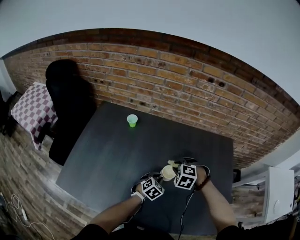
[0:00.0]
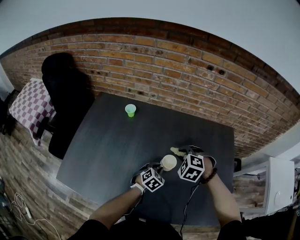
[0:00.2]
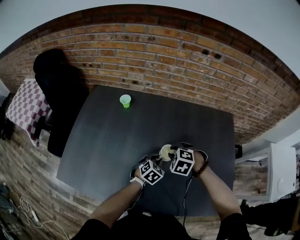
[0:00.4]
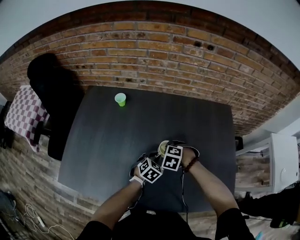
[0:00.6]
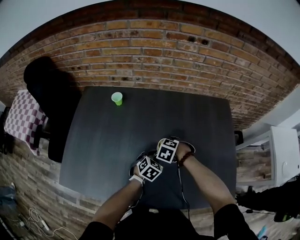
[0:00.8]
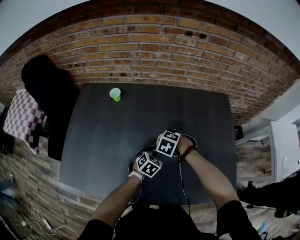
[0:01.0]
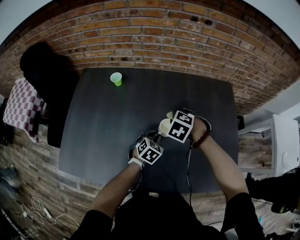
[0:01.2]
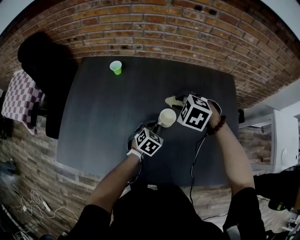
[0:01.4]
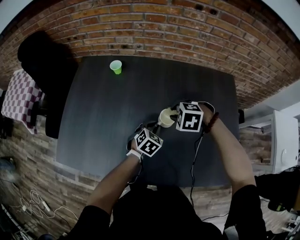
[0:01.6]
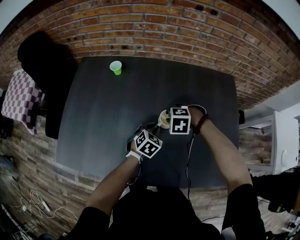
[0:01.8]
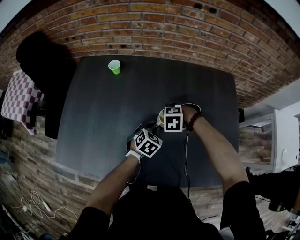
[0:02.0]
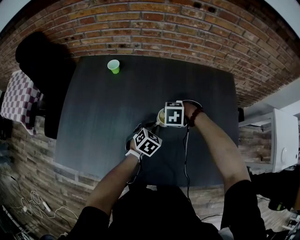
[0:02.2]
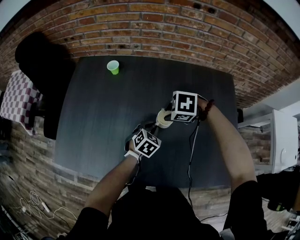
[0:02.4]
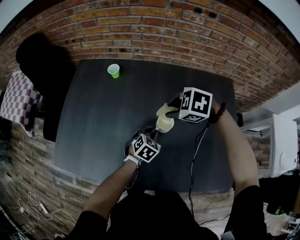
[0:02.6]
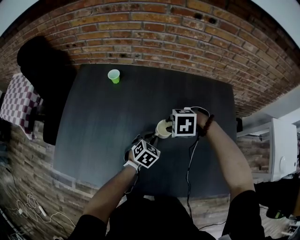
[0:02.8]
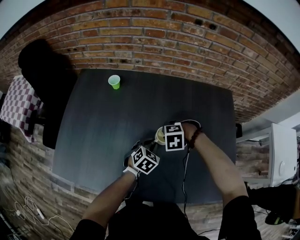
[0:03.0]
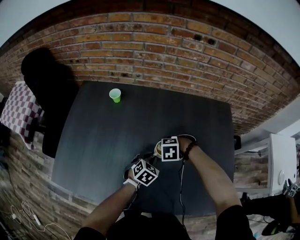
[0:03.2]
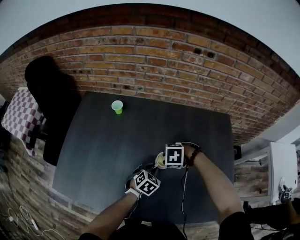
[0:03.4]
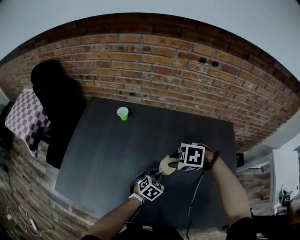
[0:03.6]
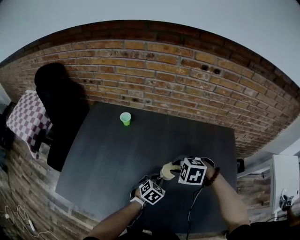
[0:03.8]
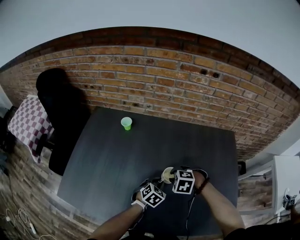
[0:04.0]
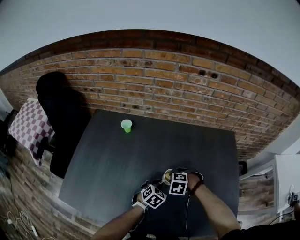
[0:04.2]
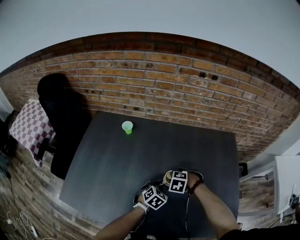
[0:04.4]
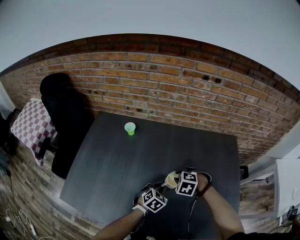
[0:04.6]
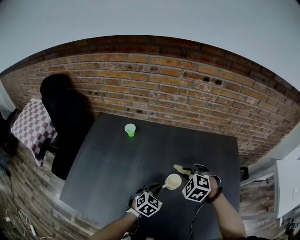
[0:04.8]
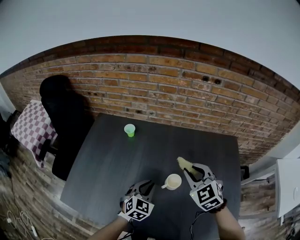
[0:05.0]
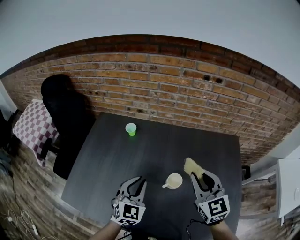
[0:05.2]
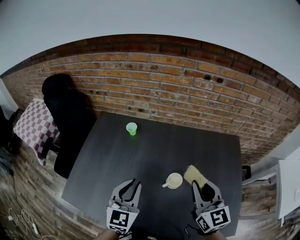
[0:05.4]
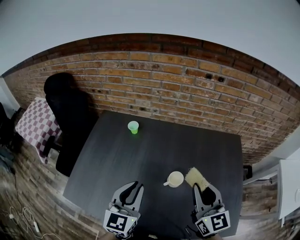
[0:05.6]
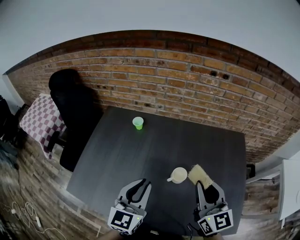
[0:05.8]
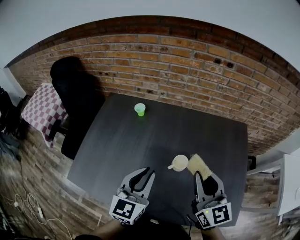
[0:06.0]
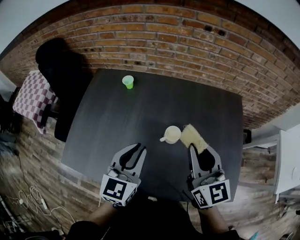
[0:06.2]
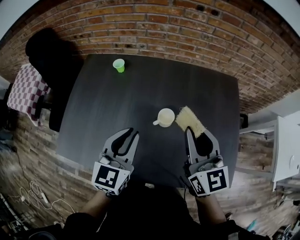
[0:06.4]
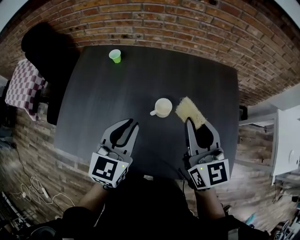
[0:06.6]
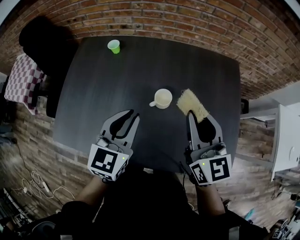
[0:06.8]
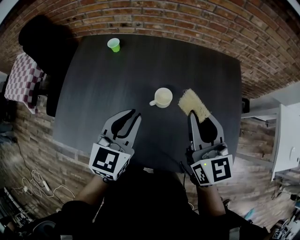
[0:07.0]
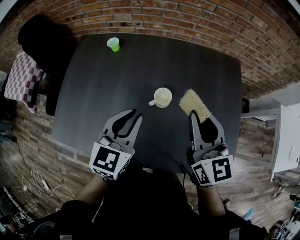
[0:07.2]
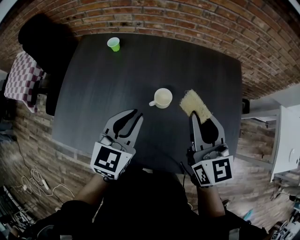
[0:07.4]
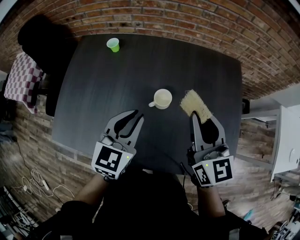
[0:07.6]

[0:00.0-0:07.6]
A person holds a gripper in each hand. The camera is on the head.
0:00.0 to 0:01.6: The right gripper goes up and down, some 15 cm each way, reversing 3 times.
0:01.6 to 0:03.0: The right gripper goes up and down, about 15 cm each way, reversing 2 times.
0:03.0 to 0:04.6: The right gripper moves up and down over about 15 cm, changing direction 2 times.
0:04.6 to 0:06.0: The right gripper goes about 25 cm upward and backward, and tilts its fingers roughly 70 degrees upward, while the left gripper goes some 25 cm upward, and angles its fingers upward, by about 40 degrees.
0:06.0 to 0:07.6: The right gripper moves to the right, roughly 5 cm, while the left gripper goes approximately 10 cm to the right and downward.

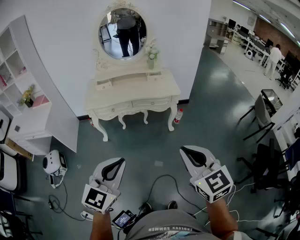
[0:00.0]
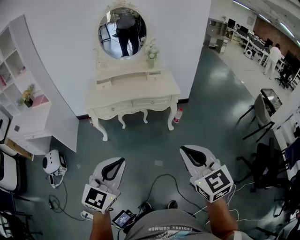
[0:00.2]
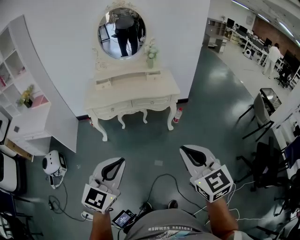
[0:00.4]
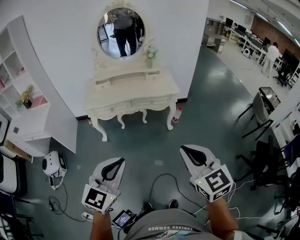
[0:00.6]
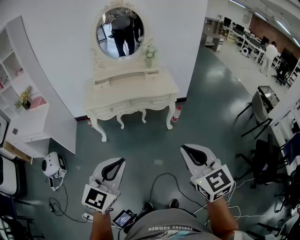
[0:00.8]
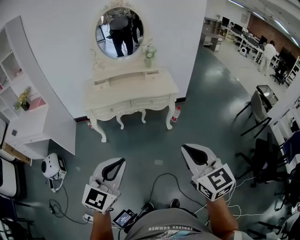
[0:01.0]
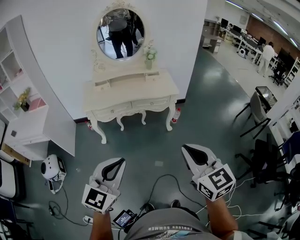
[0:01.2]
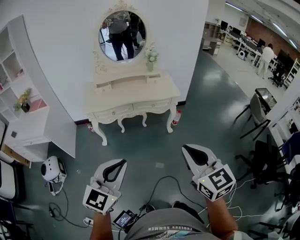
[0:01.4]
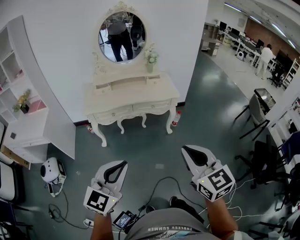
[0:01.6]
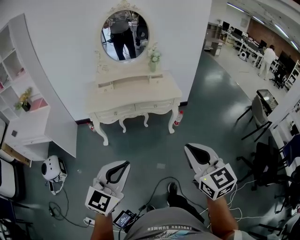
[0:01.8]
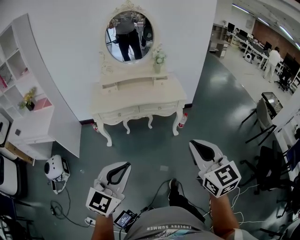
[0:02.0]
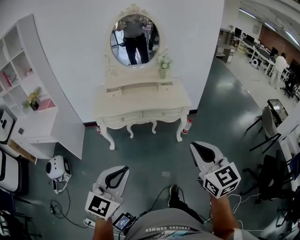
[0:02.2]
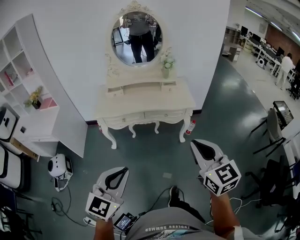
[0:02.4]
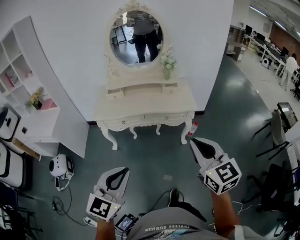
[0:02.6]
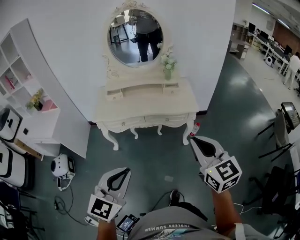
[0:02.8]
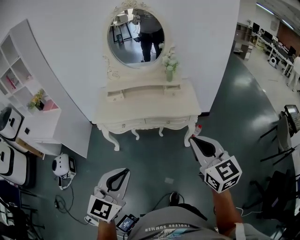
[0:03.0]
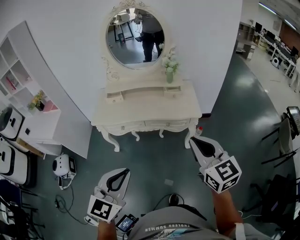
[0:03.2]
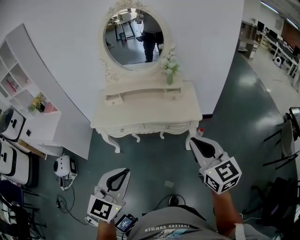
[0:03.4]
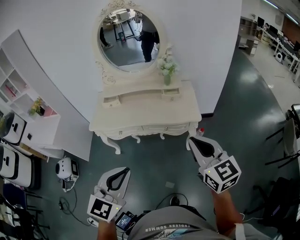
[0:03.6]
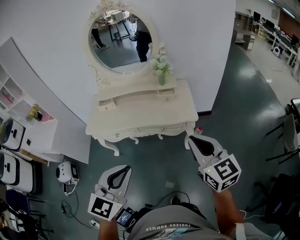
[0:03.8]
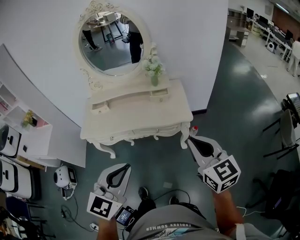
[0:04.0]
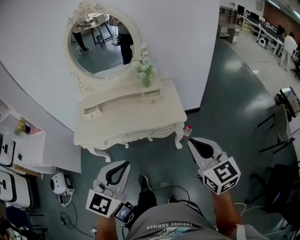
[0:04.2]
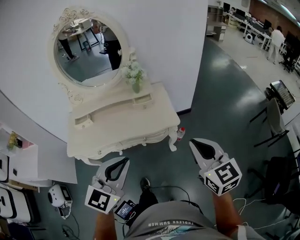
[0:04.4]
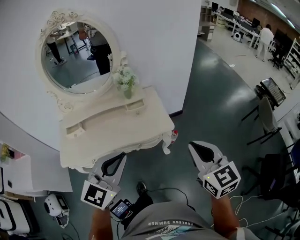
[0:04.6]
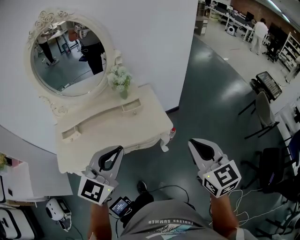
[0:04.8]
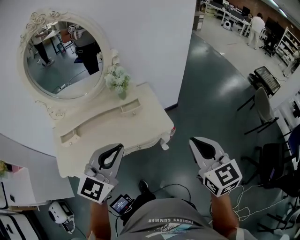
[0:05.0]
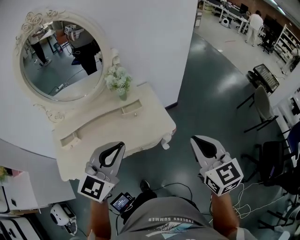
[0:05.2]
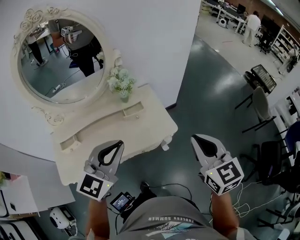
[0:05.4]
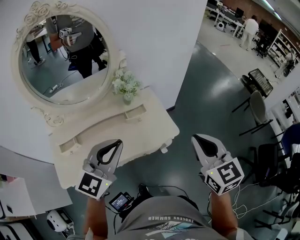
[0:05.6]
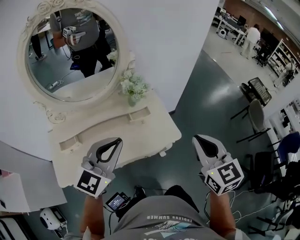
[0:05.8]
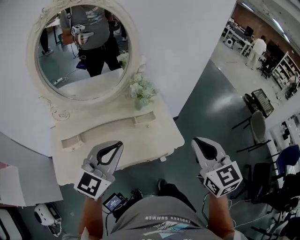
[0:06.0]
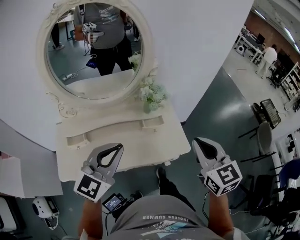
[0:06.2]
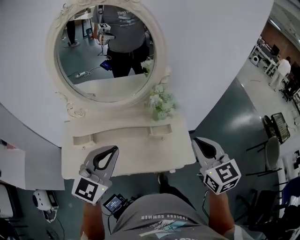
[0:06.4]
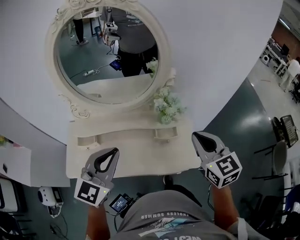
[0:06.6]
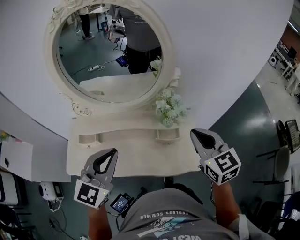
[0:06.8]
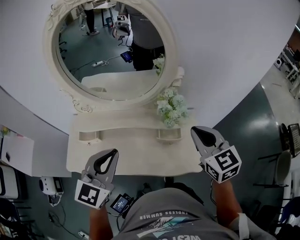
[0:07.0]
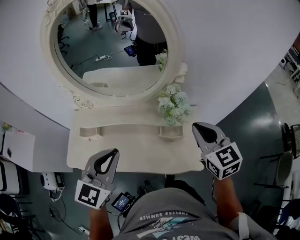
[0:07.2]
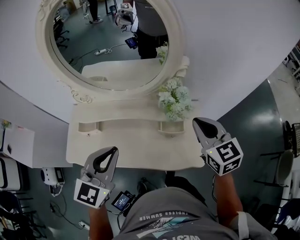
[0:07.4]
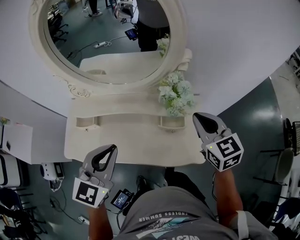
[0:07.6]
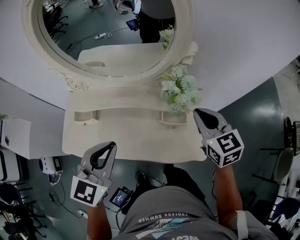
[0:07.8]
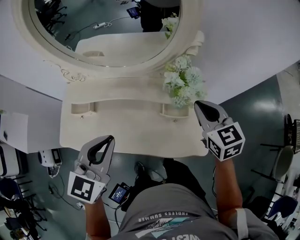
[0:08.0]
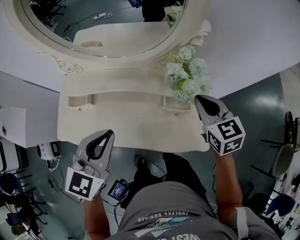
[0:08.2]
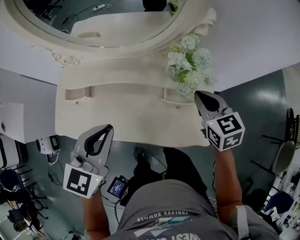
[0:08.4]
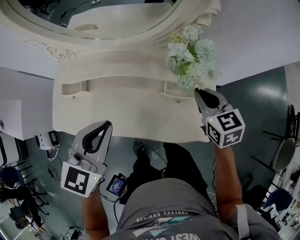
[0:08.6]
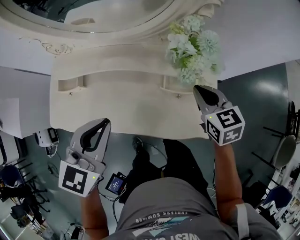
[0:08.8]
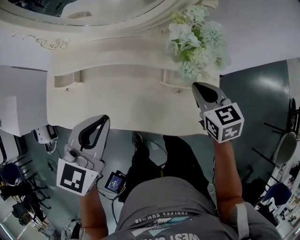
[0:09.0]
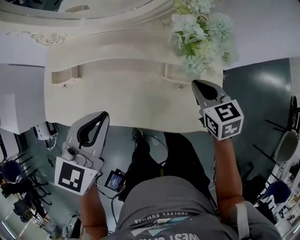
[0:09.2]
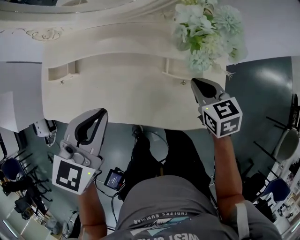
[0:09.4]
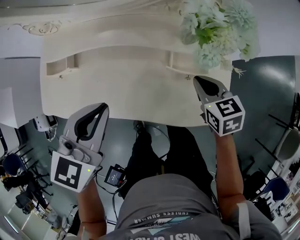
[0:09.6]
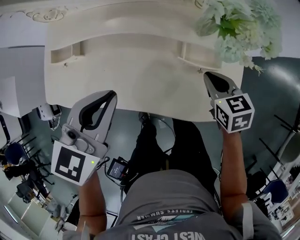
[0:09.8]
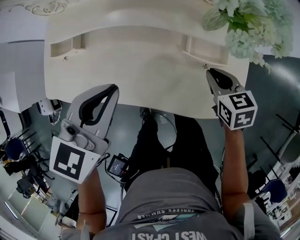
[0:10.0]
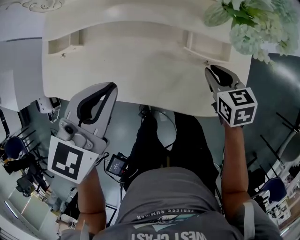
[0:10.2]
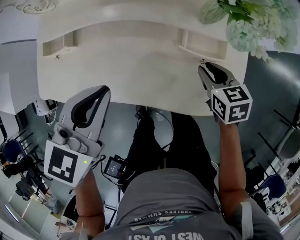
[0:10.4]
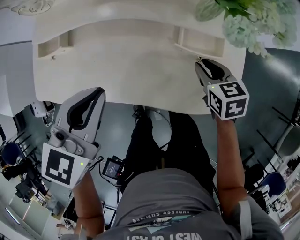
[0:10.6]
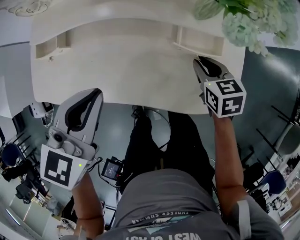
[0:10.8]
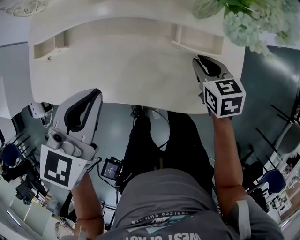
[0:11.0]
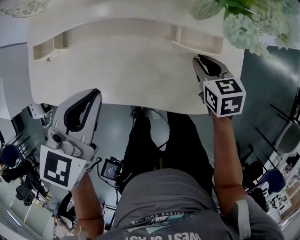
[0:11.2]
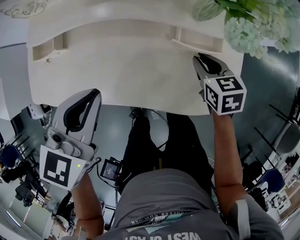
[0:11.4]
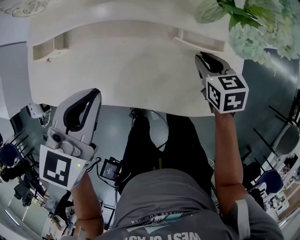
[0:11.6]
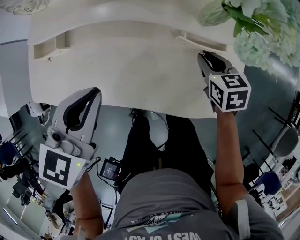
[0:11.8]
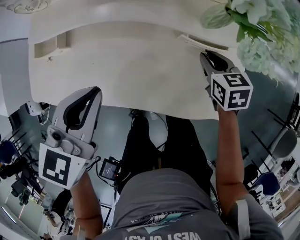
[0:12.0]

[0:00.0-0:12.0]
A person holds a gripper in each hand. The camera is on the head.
0:00.0 to 0:01.6: Both grippers travel together to the left, approximately 5 cm.
0:01.6 to 0:03.0: The right gripper heads forward, covering approximately 30 cm. Meanwhile the left gripper moves forward and to the right, some 20 cm.
0:03.0 to 0:04.4: The grippers both shift forward and to the right by roughly 25 cm.
0:04.4 to 0:06.0: The left gripper shifts some 30 cm forward and to the left. Meanwhile the right gripper moves to the left and forward, about 25 cm.
0:06.0 to 0:07.6: The right gripper moves about 30 cm, and swivels about 30 degrees. Meanwhile the left gripper moves some 10 cm, and rotates approximately 30 degrees.
0:07.6 to 0:09.0: The left gripper heads downward, covering some 10 cm; the right gripper shifts roughly 20 cm downward.
0:09.0 to 0:10.4: The left gripper is displaced downward by about 5 cm; the right gripper heads downward, covering some 15 cm, and opens up.
0:10.4 to 0:12.0: The right gripper heads forward, covering some 5 cm.

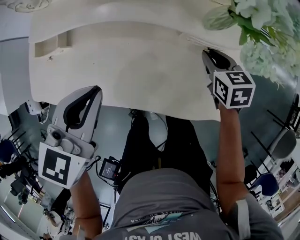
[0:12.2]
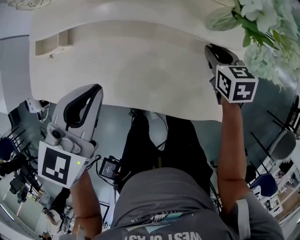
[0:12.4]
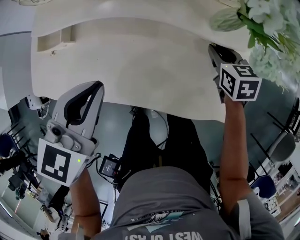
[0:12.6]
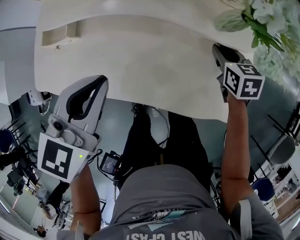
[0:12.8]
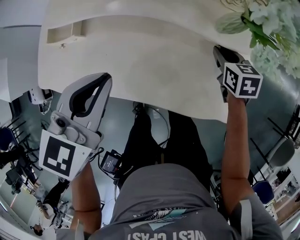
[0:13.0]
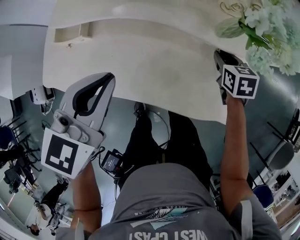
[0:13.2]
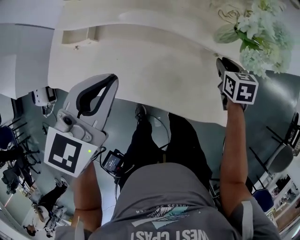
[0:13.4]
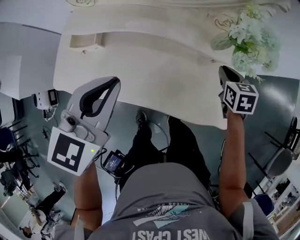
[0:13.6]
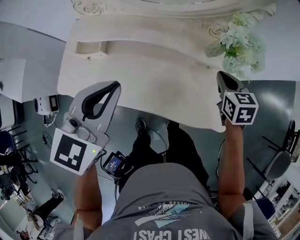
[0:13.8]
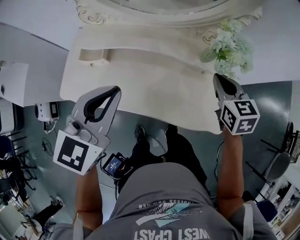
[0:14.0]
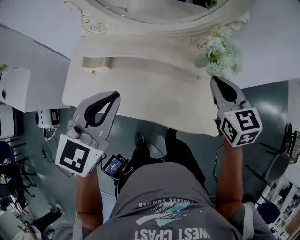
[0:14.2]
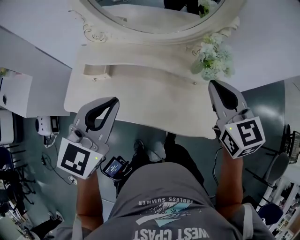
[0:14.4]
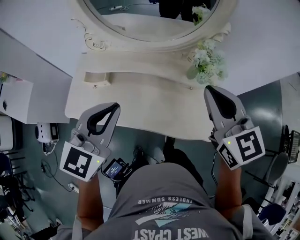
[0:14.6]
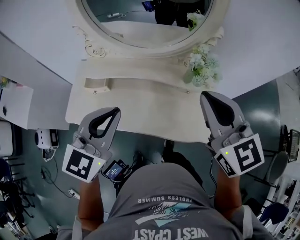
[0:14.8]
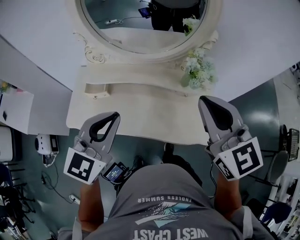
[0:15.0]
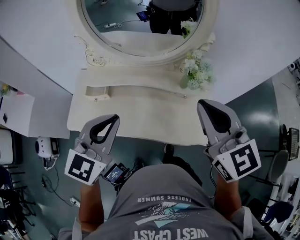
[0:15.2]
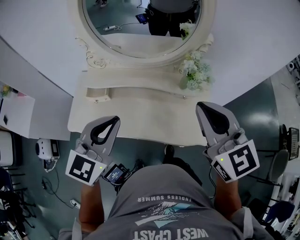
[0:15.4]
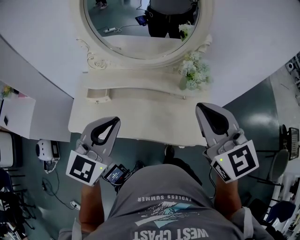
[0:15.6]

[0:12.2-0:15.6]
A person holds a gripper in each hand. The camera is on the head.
0:12.2 to 0:13.8: Both grippers travel together upward, about 15 cm.
0:13.8 to 0:15.6: The left gripper is displaced upward and backward by some 15 cm. The right gripper moves upward and backward, about 35 cm, and points its fingers roughly 30 degrees further upward.
